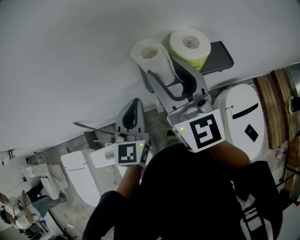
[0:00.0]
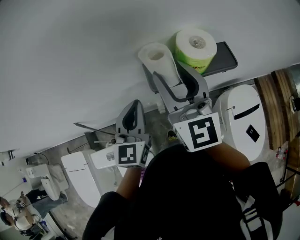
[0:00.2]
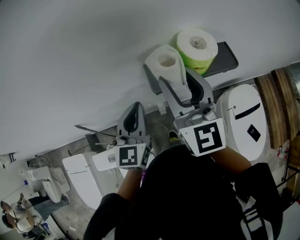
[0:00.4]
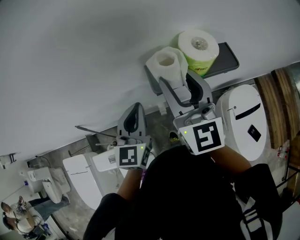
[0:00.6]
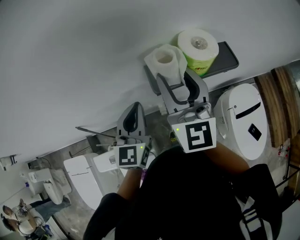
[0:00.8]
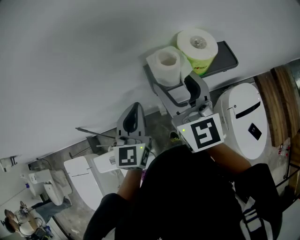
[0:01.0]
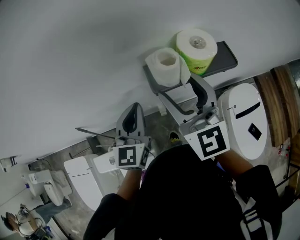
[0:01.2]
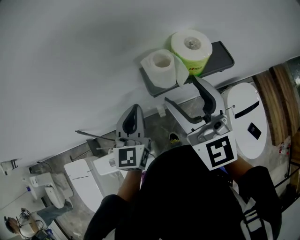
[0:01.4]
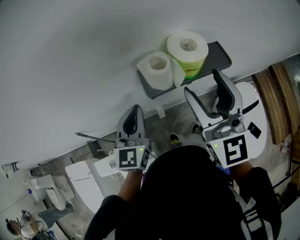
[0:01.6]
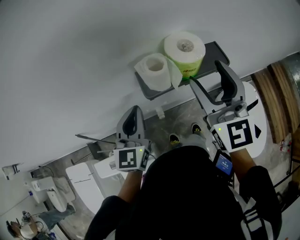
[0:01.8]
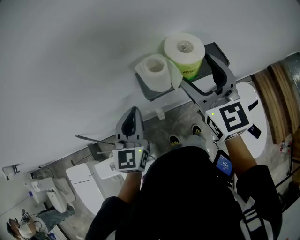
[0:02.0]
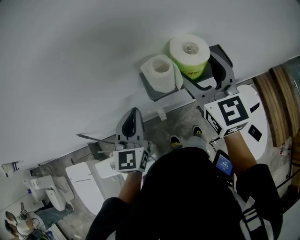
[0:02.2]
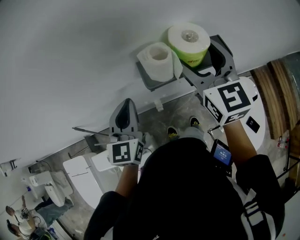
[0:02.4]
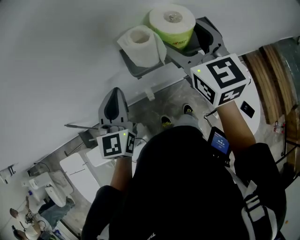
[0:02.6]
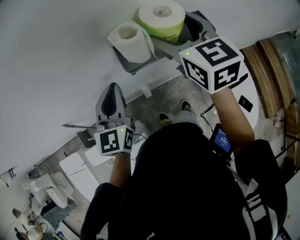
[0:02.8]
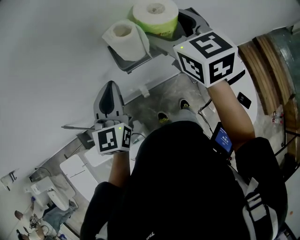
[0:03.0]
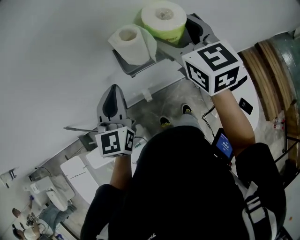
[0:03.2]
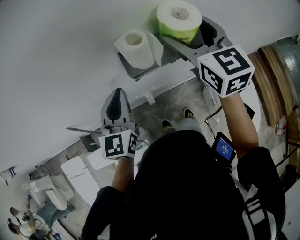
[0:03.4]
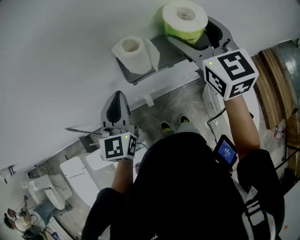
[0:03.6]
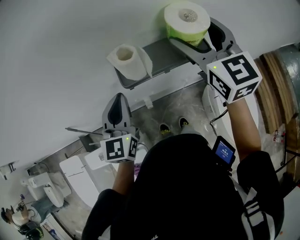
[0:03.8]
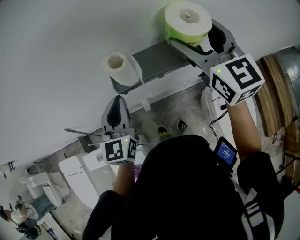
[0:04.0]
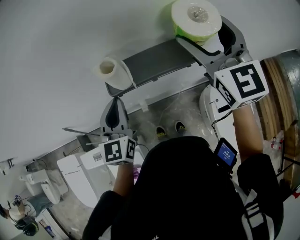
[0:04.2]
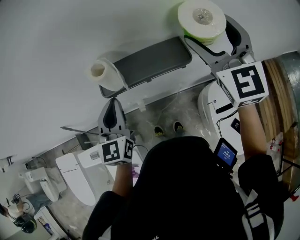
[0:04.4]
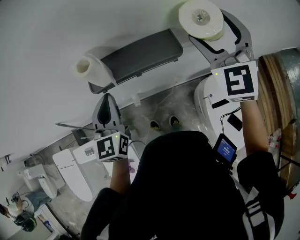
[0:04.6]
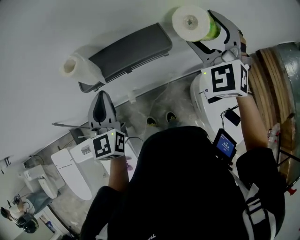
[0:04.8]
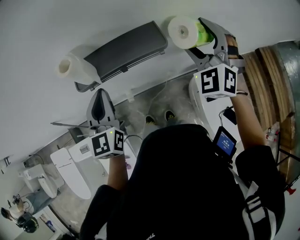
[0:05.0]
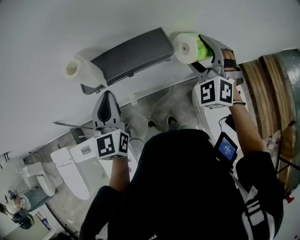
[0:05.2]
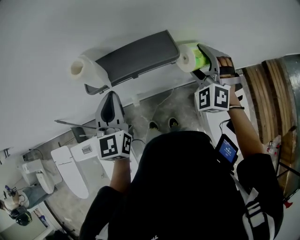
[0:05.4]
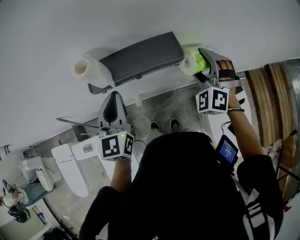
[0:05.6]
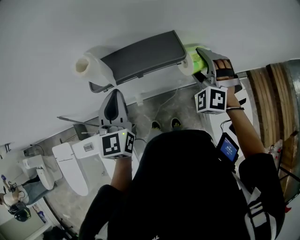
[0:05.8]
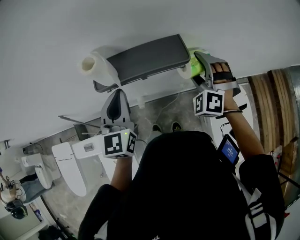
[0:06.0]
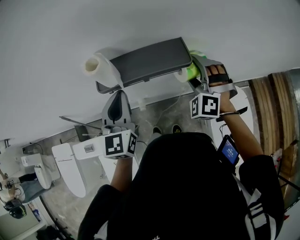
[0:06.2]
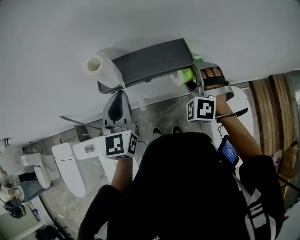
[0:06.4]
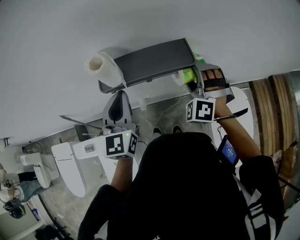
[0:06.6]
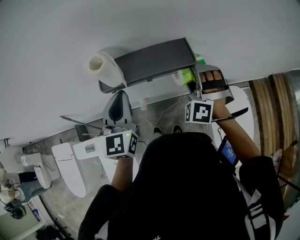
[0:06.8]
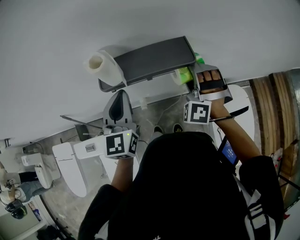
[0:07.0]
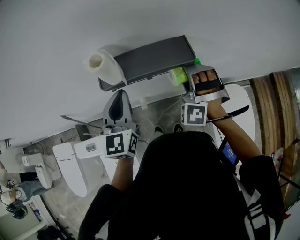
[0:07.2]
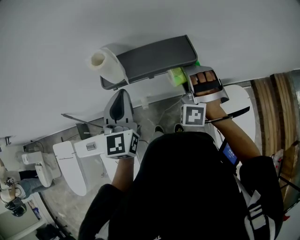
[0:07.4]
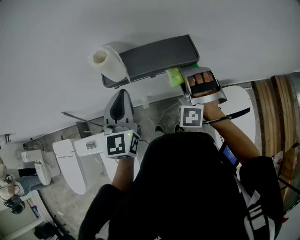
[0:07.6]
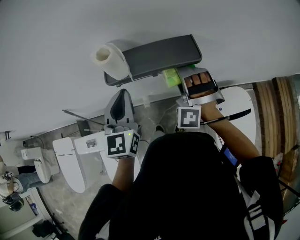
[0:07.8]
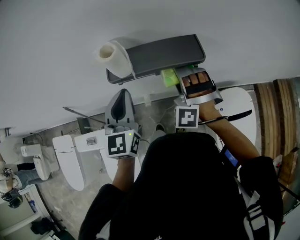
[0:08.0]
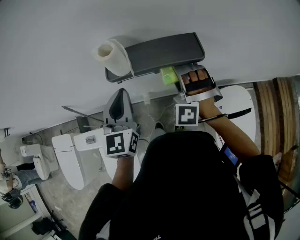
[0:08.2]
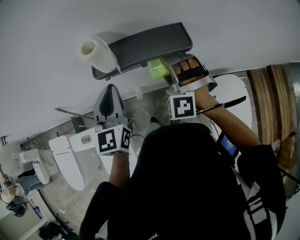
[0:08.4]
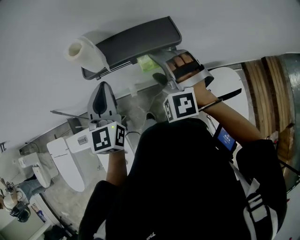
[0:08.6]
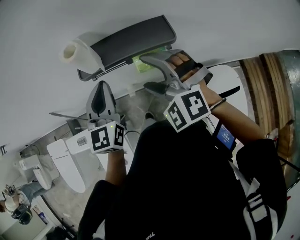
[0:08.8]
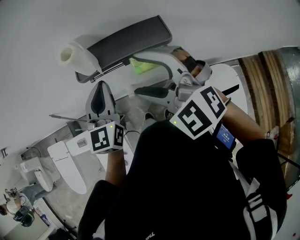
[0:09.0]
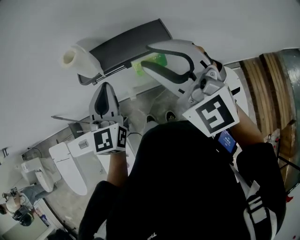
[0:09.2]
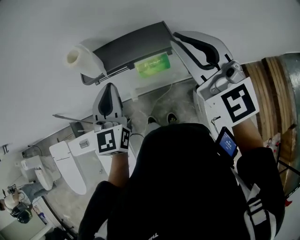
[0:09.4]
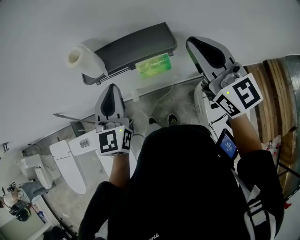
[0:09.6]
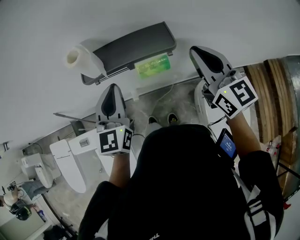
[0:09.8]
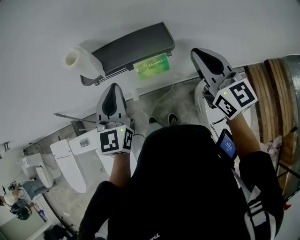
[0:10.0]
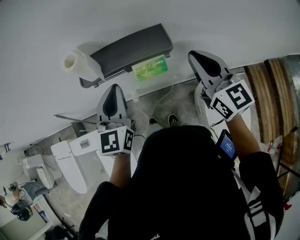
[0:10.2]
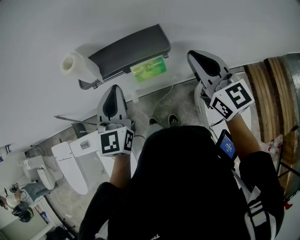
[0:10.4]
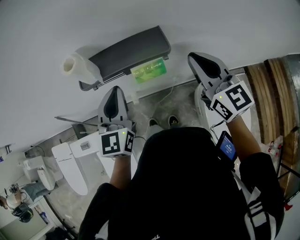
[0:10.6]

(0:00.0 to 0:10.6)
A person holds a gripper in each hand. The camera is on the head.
0:00.0 - 0:01.6: The right gripper travels to the right by some 10 cm.
0:01.6 - 0:03.0: The right gripper shifts some 10 cm forward, and changes its angle by some 20 degrees.
0:03.0 - 0:04.6: The right gripper heads to the right, covering some 20 cm, and changes its angle by some 40 degrees. Meanwhile the left gripper goes some 10 cm to the right.
0:04.6 - 0:06.0: The right gripper is displaced downward by approximately 20 cm, and swivels about 40 degrees.
0:06.0 - 0:07.6: The right gripper heads to the left, covering some 10 cm.
0:07.6 - 0:09.0: The right gripper travels upward, backward and to the left by approximately 15 cm, and turns by roughly 50 degrees.
0:09.0 - 0:10.6: The right gripper moves to the right, approximately 20 cm, twists approximately 50 degrees clockwise, seen from behind, and closes.

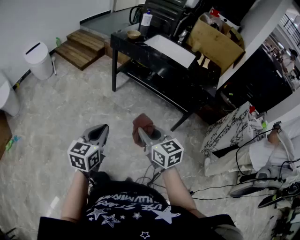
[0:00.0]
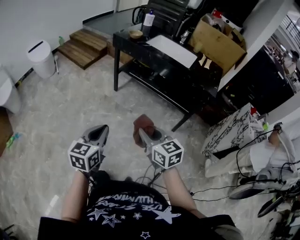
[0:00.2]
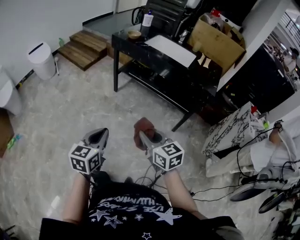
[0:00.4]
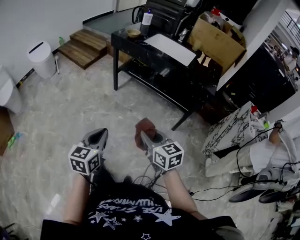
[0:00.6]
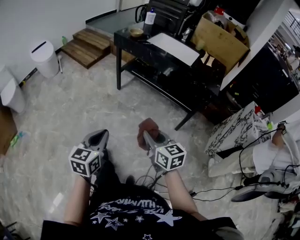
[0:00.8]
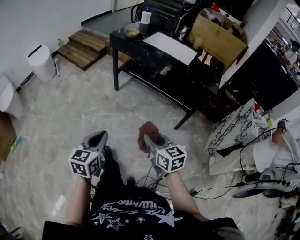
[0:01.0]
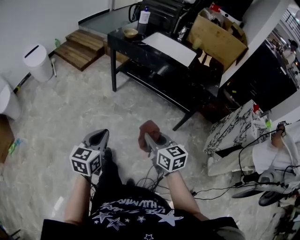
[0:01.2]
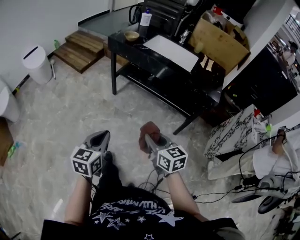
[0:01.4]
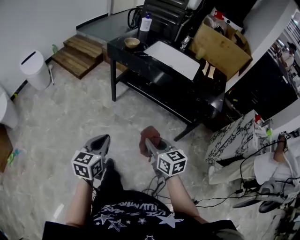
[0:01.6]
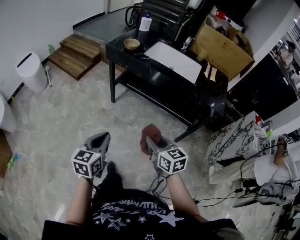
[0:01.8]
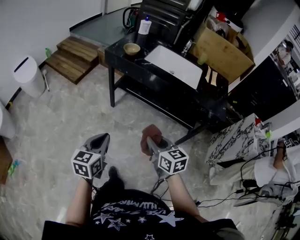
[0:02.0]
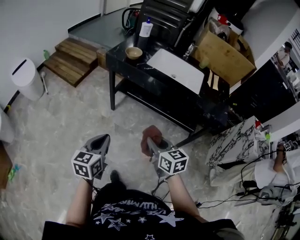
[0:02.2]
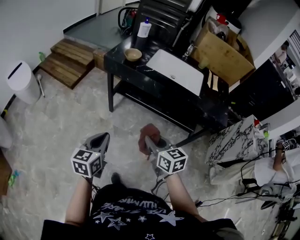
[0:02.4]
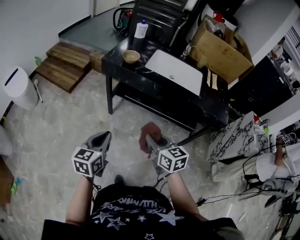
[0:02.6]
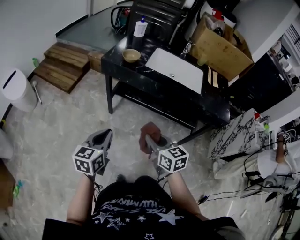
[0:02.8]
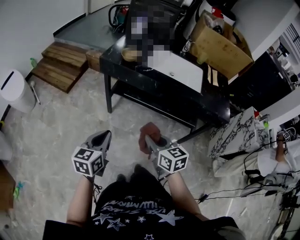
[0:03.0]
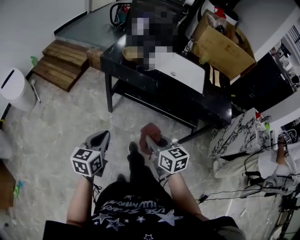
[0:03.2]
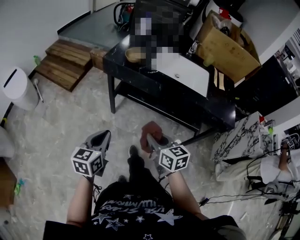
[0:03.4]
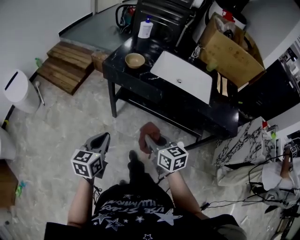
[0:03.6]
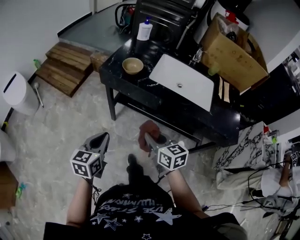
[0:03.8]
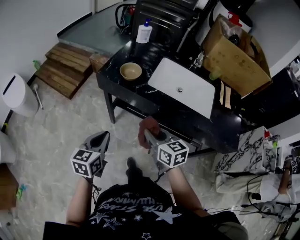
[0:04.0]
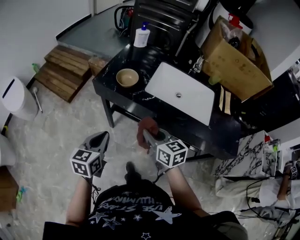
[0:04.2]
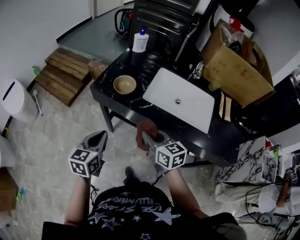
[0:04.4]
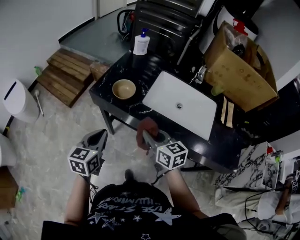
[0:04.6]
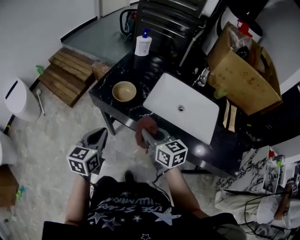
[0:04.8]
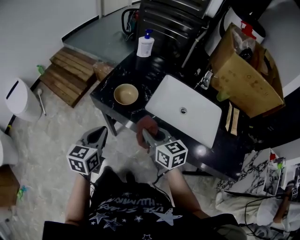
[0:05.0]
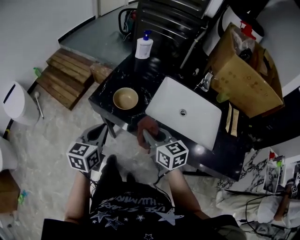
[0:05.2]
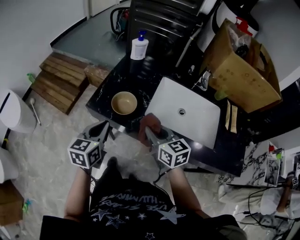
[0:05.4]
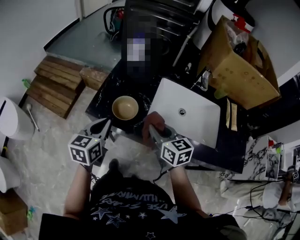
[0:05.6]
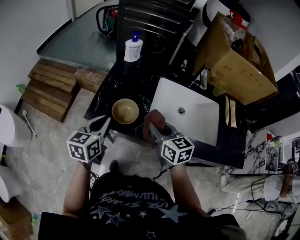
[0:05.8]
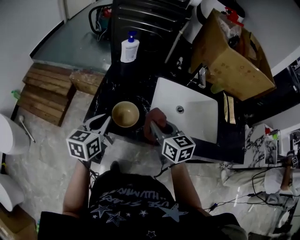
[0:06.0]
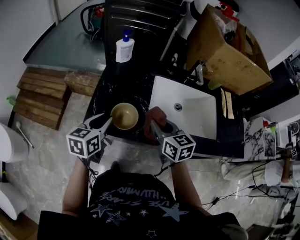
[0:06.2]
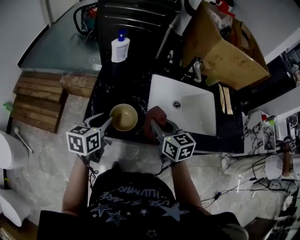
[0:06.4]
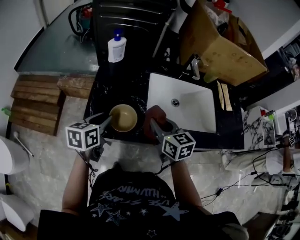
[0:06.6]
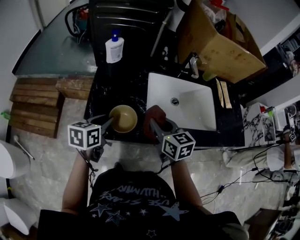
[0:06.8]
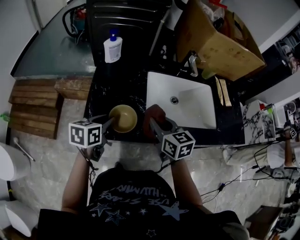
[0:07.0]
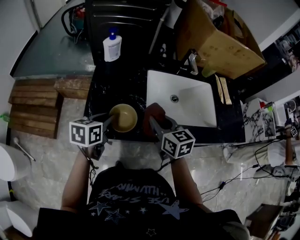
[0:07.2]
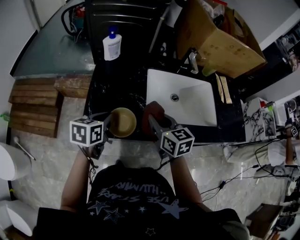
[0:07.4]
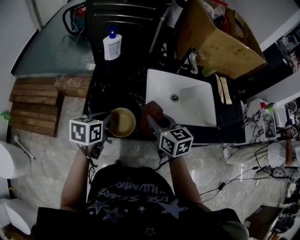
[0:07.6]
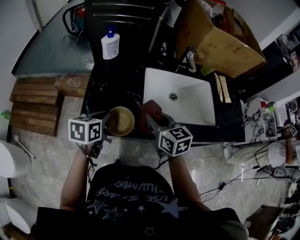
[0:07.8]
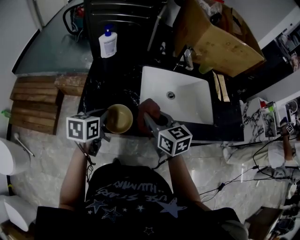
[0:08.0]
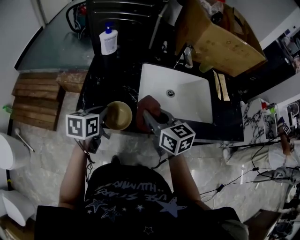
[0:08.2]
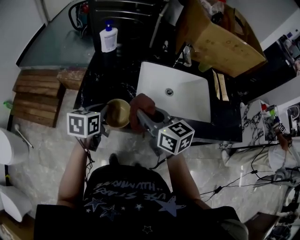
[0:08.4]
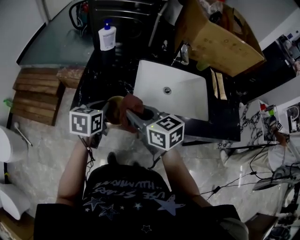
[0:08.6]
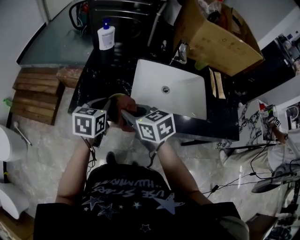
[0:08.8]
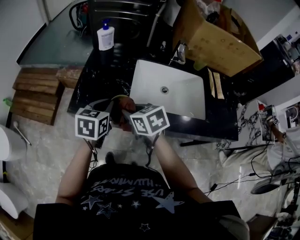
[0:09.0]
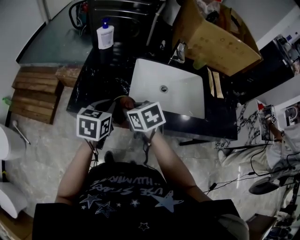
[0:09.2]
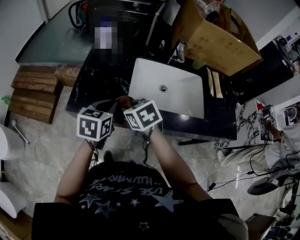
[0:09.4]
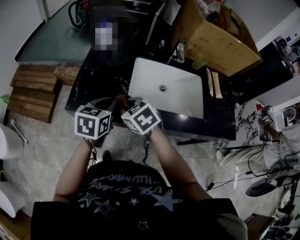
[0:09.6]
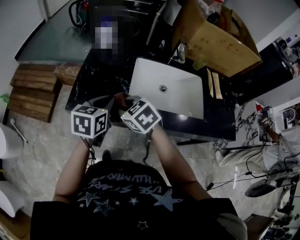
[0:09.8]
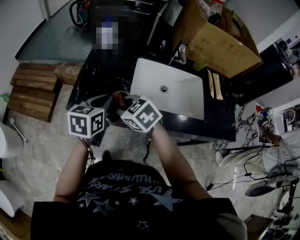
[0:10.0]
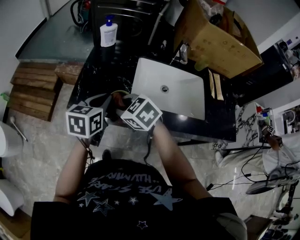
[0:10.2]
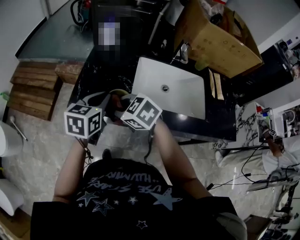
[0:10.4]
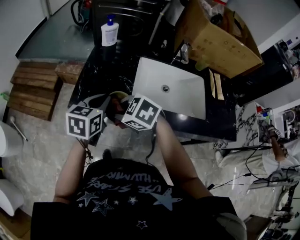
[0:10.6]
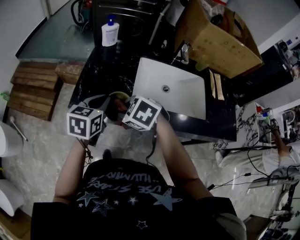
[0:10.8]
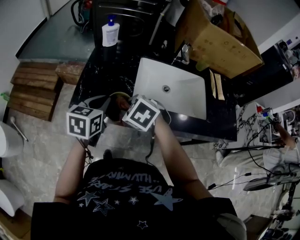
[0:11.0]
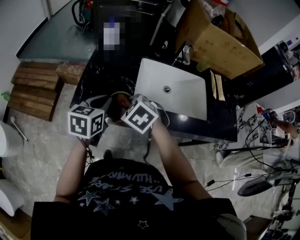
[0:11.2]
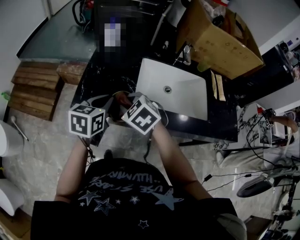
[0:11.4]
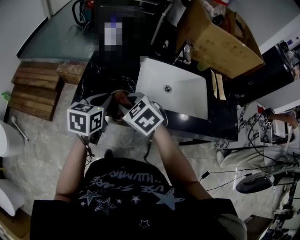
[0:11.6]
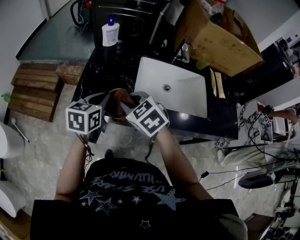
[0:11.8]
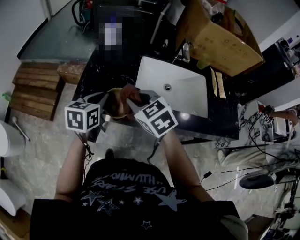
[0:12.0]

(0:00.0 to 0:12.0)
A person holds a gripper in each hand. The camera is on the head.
0:00.0 - 0:01.6: Both grippers travel together forward, roughly 10 cm.
0:01.6 - 0:03.0: Both grippers move forward and to the left, some 25 cm.
0:03.0 - 0:04.4: Both grippers travel together forward, roughly 25 cm.
0:04.4 - 0:06.0: Both grippers travel together forward, roughly 20 cm.
0:06.0 - 0:07.6: The left gripper ends up about 5 cm from where it was, and changes its angle by approximately 20 degrees.
0:07.6 - 0:09.0: The right gripper travels backward by roughly 5 cm, and swivels roughly 30 degrees. The left gripper moves to the right, approximately 10 cm.
0:09.0 - 0:10.4: The right gripper goes roughly 5 cm to the left, and swivels some 30 degrees.
0:10.4 - 0:12.0: The right gripper is displaced to the right by some 5 cm, and swivels some 20 degrees.

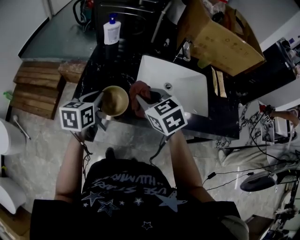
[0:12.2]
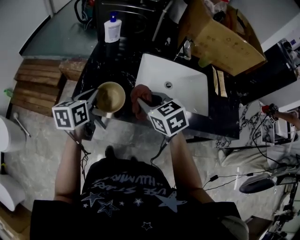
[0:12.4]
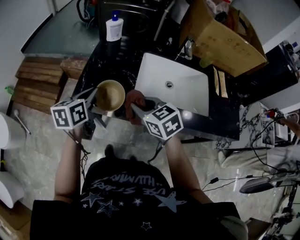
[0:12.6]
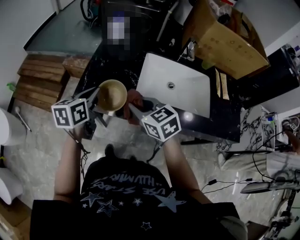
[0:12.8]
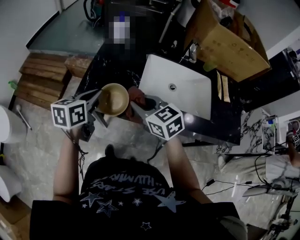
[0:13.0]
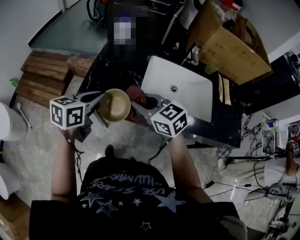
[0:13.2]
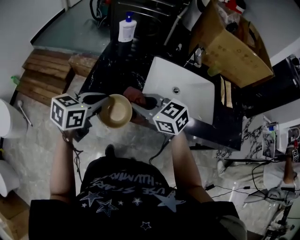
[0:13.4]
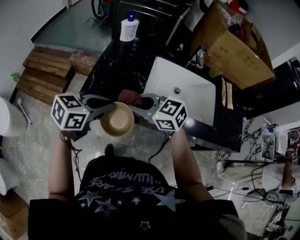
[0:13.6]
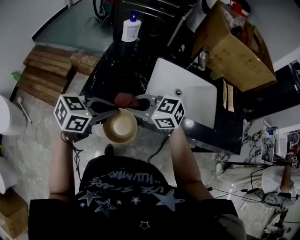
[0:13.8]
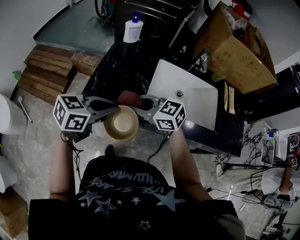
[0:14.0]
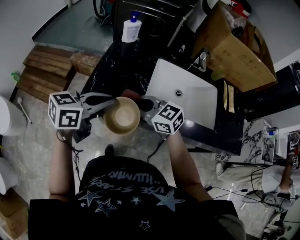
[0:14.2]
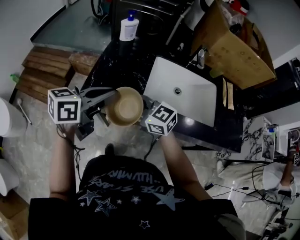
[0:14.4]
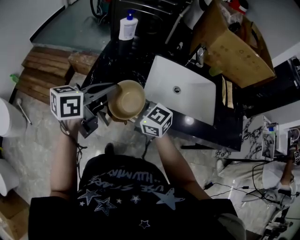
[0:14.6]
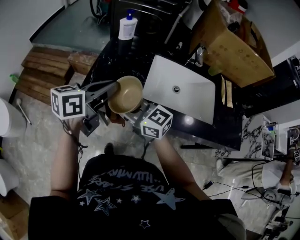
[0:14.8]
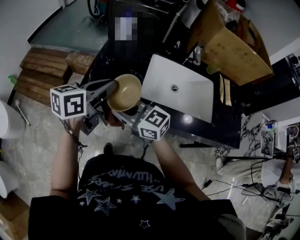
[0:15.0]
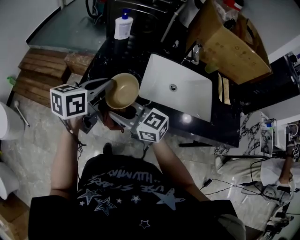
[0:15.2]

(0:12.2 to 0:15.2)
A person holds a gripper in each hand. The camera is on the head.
0:12.2 - 0:13.8: The left gripper shifts by approximately 10 cm, and swivels approximately 40 degrees, while the right gripper shifts by about 10 cm, and turns by approximately 40 degrees.
0:13.8 - 0:15.2: The left gripper changes place by some 10 cm, and rotates approximately 30 degrees.
